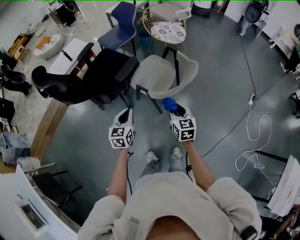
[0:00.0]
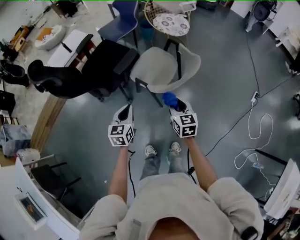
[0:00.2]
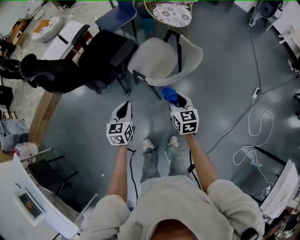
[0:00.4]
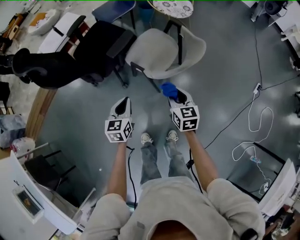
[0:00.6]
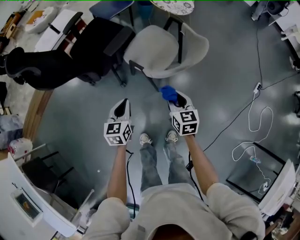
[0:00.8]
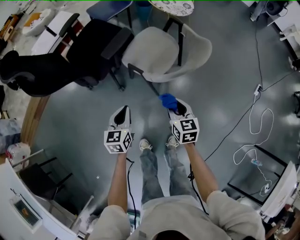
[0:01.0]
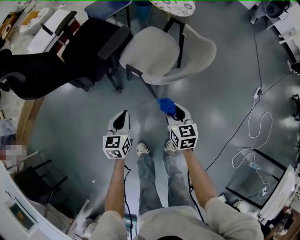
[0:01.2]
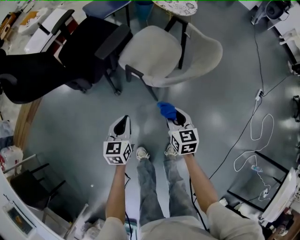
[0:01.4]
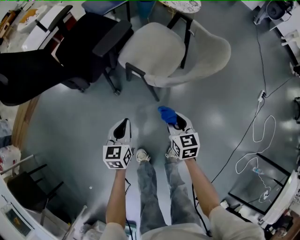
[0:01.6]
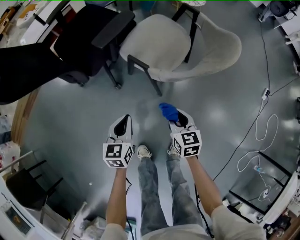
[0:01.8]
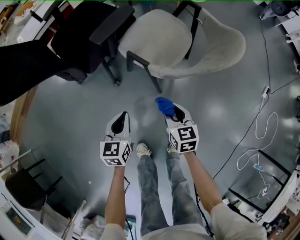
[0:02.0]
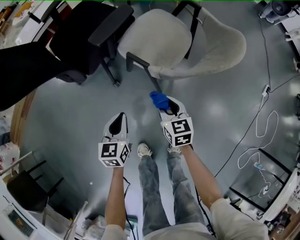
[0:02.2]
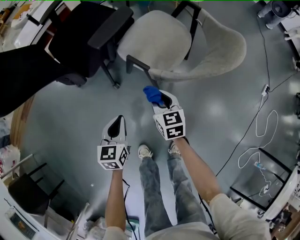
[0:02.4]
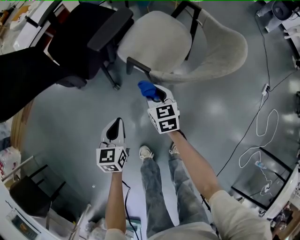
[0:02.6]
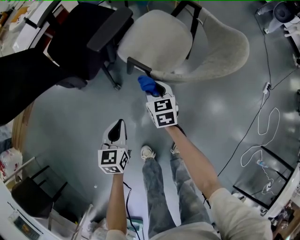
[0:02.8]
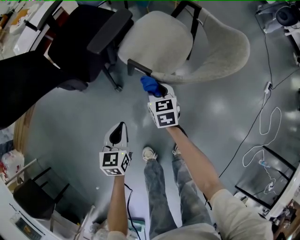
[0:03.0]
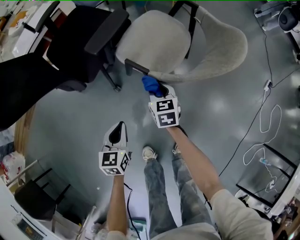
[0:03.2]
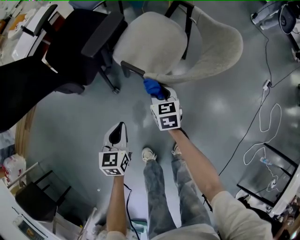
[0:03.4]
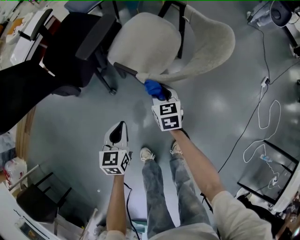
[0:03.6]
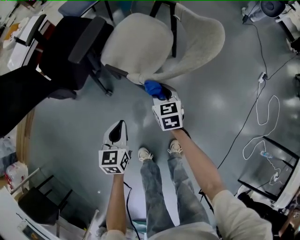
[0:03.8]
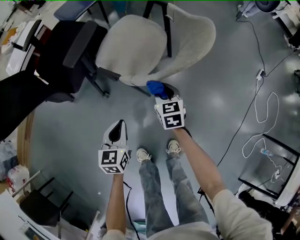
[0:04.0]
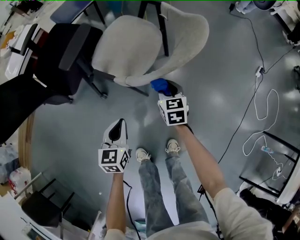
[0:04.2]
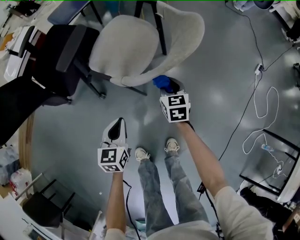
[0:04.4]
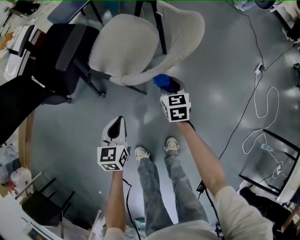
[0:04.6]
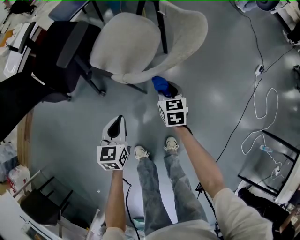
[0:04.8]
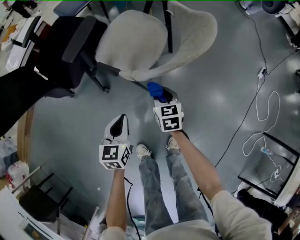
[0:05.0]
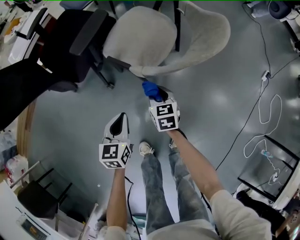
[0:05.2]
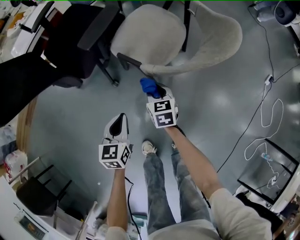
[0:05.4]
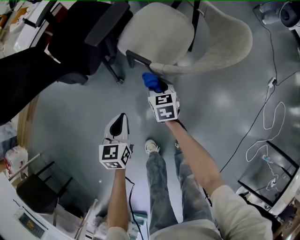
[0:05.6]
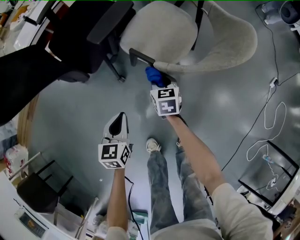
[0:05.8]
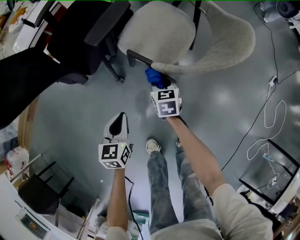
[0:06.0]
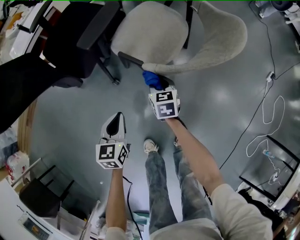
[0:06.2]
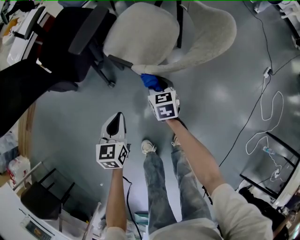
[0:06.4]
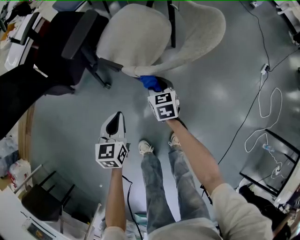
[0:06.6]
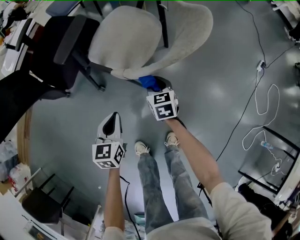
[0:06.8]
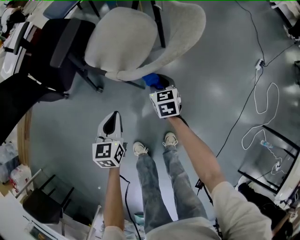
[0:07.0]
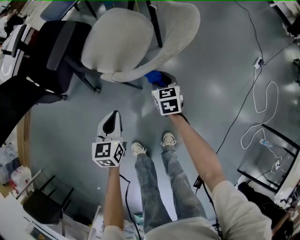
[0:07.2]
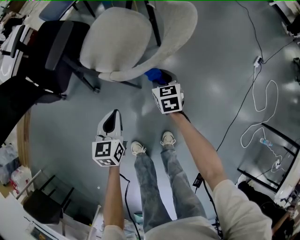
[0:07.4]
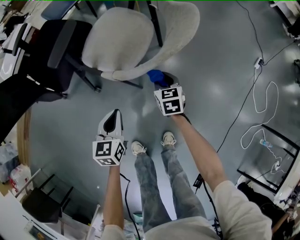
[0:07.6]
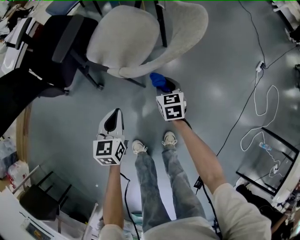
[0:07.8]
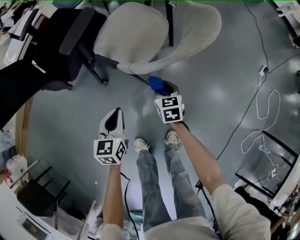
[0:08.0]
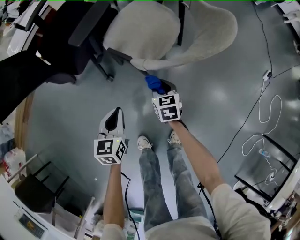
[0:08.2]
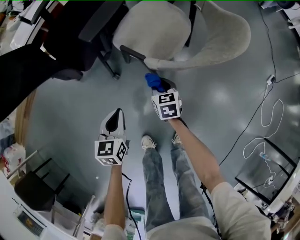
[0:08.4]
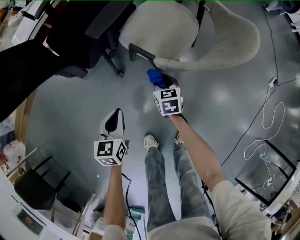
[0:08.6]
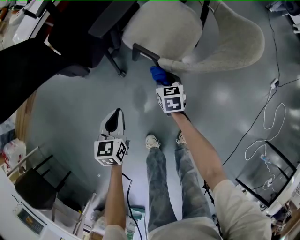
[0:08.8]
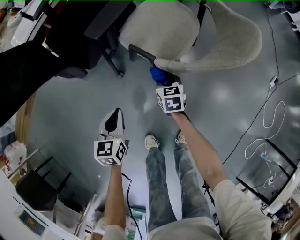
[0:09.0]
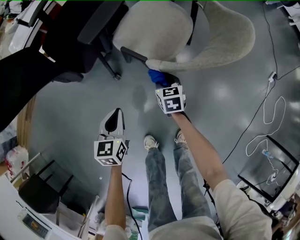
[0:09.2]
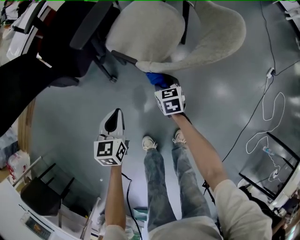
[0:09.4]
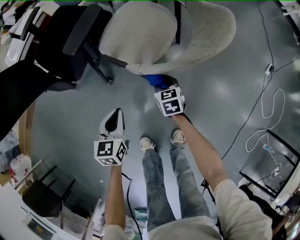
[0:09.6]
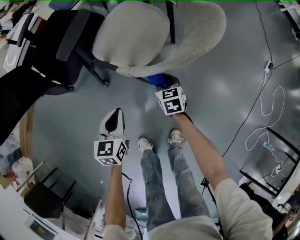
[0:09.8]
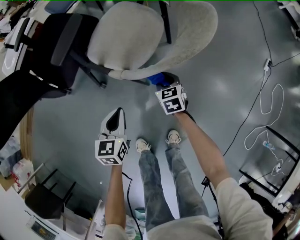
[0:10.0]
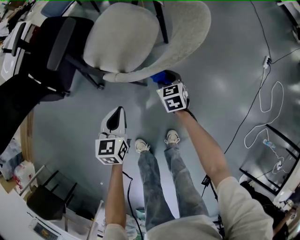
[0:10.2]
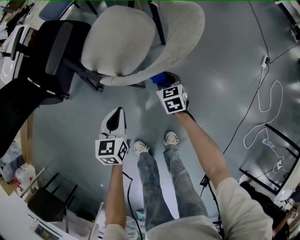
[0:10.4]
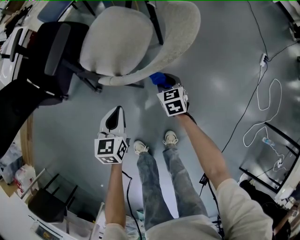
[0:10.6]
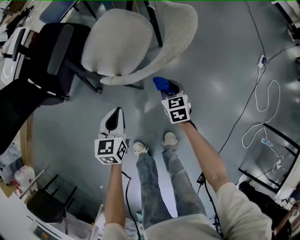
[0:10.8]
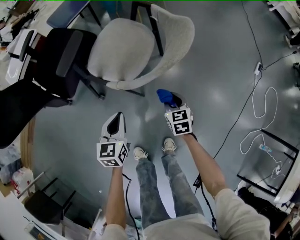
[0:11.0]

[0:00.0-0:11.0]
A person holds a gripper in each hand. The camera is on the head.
0:00.0 to 0:01.6: Both grippers move downward, some 25 cm.
0:01.6 to 0:03.2: The left gripper changes place by some 5 cm, while the right gripper goes about 20 cm forward, to the left and downward.
0:03.2 to 0:04.8: The two grippers go about 15 cm to the right.
0:04.8 to 0:06.2: The grippers both shift to the left by roughly 15 cm.
0:06.2 to 0:07.8: The two grippers go about 15 cm to the right.
0:07.8 to 0:09.4: Both grippers move to the left, approximately 10 cm.
0:09.4 to 0:11.0: The grippers both shift to the right by roughly 15 cm.

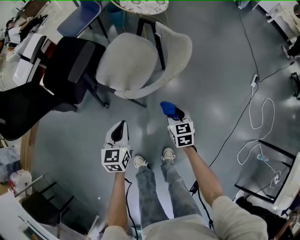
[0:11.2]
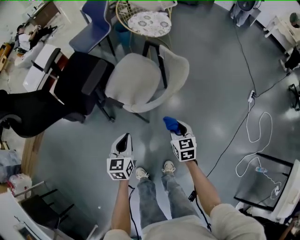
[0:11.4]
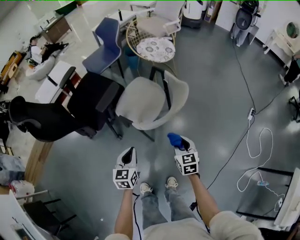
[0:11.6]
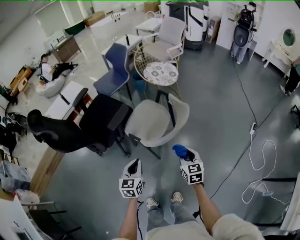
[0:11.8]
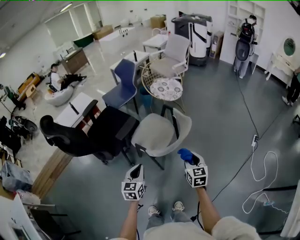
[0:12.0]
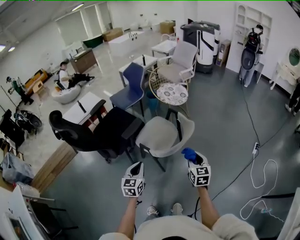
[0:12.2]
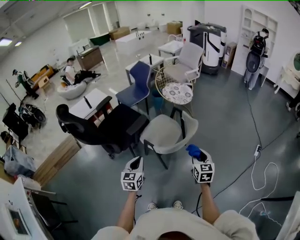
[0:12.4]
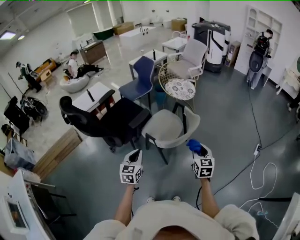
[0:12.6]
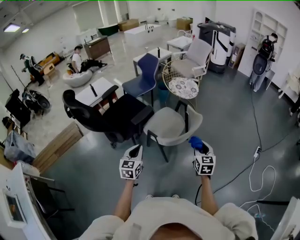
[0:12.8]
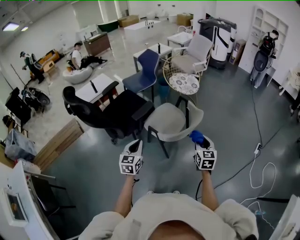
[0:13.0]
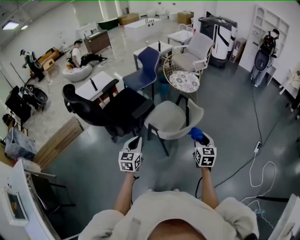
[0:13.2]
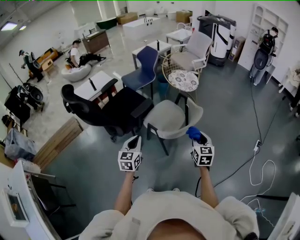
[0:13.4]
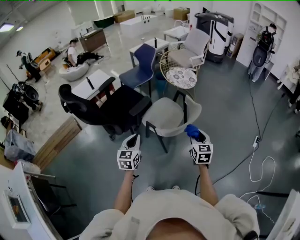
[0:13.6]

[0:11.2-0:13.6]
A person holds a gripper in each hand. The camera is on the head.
0:11.2 to 0:12.4: The grippers both shift upward by approximately 30 cm.
0:12.4 to 0:13.6: There are only small adjustments of the grippers.

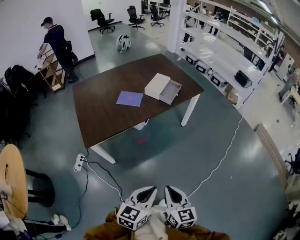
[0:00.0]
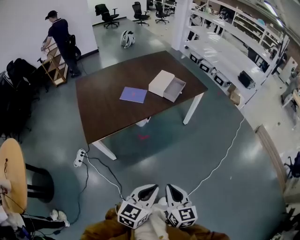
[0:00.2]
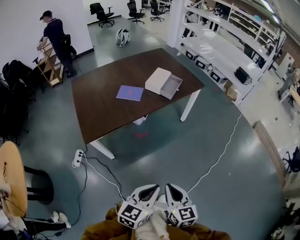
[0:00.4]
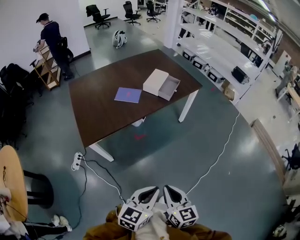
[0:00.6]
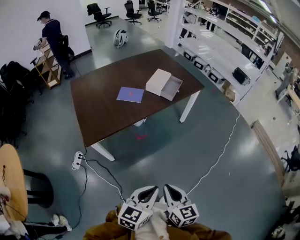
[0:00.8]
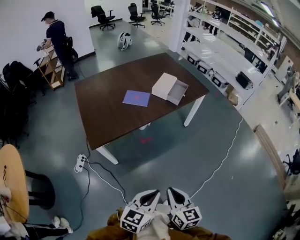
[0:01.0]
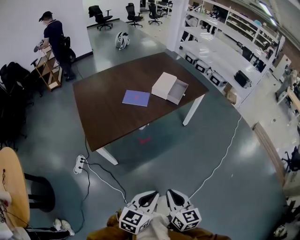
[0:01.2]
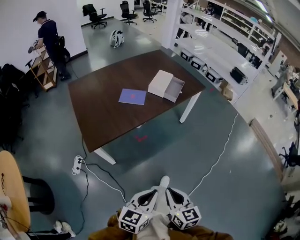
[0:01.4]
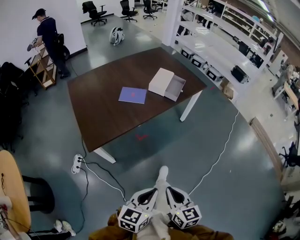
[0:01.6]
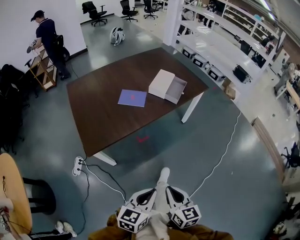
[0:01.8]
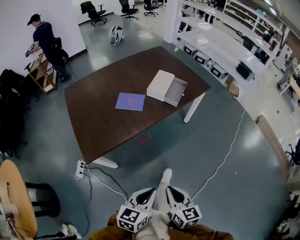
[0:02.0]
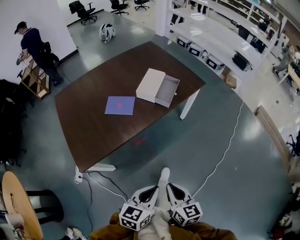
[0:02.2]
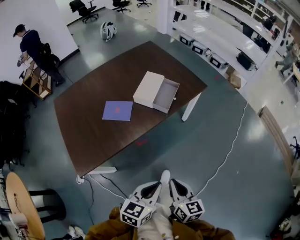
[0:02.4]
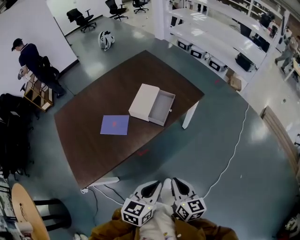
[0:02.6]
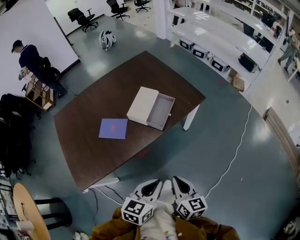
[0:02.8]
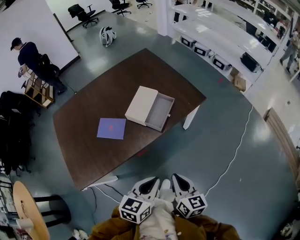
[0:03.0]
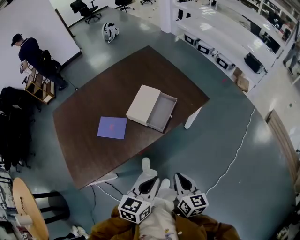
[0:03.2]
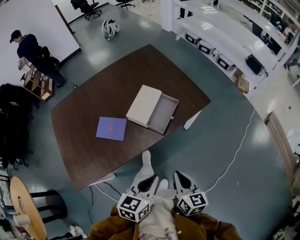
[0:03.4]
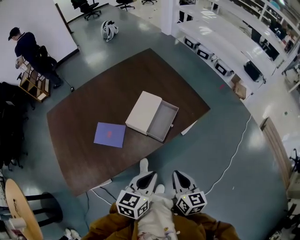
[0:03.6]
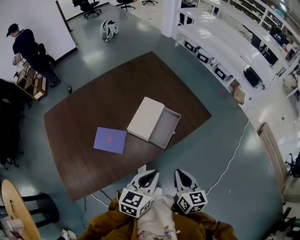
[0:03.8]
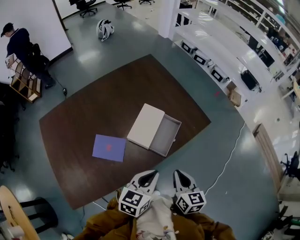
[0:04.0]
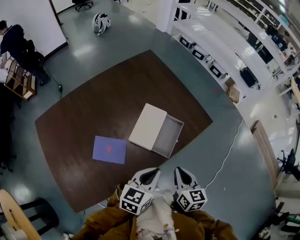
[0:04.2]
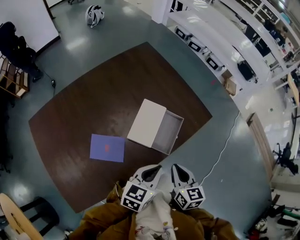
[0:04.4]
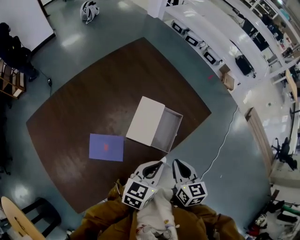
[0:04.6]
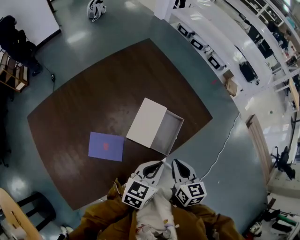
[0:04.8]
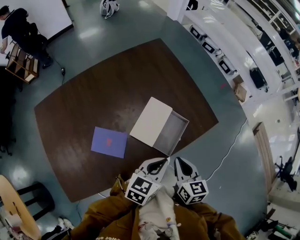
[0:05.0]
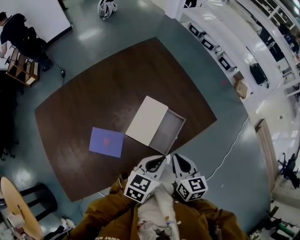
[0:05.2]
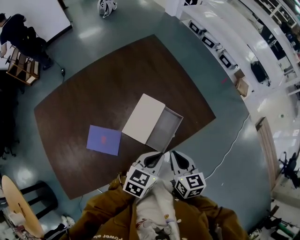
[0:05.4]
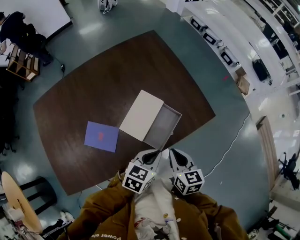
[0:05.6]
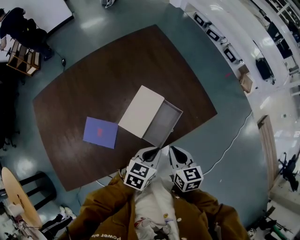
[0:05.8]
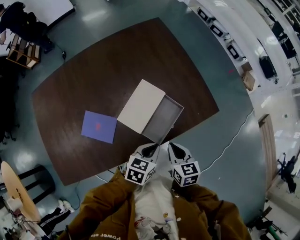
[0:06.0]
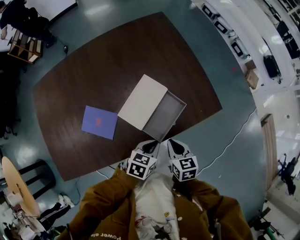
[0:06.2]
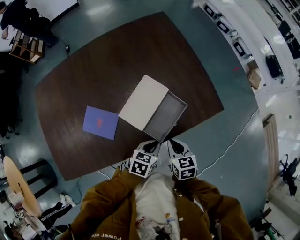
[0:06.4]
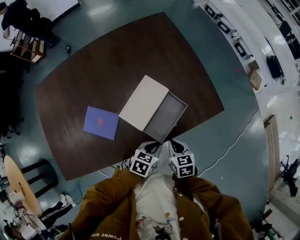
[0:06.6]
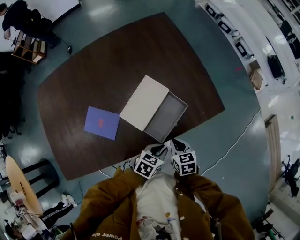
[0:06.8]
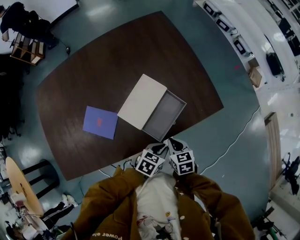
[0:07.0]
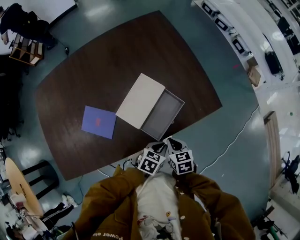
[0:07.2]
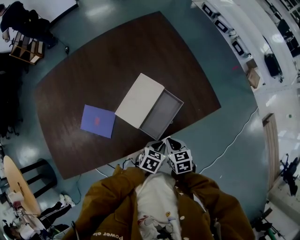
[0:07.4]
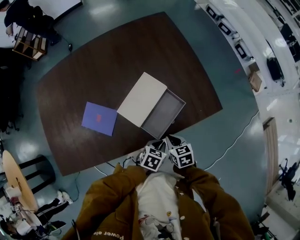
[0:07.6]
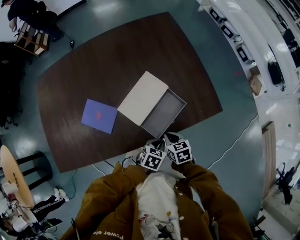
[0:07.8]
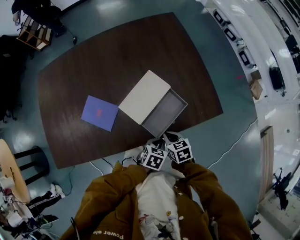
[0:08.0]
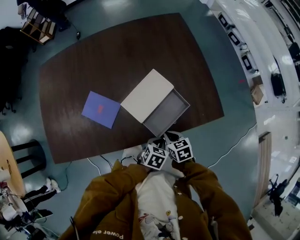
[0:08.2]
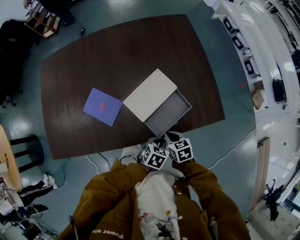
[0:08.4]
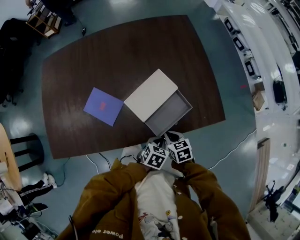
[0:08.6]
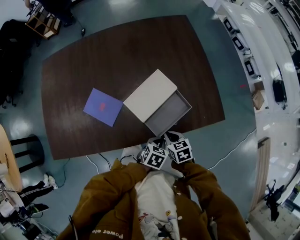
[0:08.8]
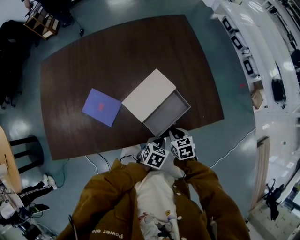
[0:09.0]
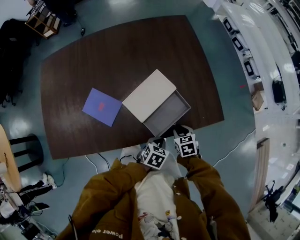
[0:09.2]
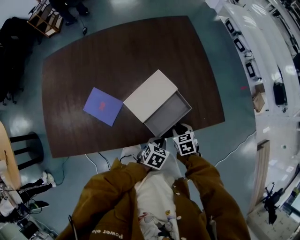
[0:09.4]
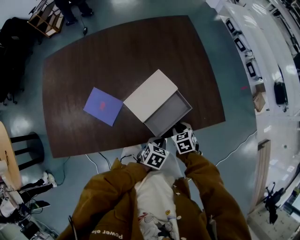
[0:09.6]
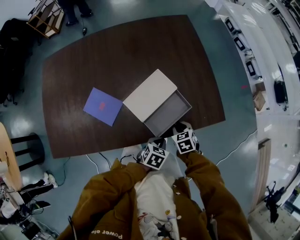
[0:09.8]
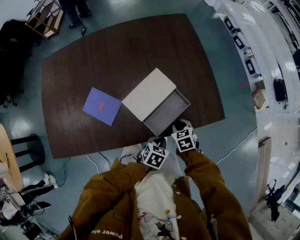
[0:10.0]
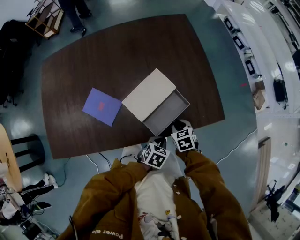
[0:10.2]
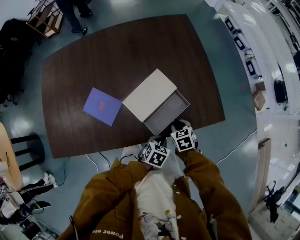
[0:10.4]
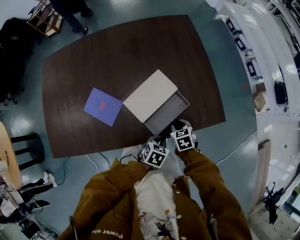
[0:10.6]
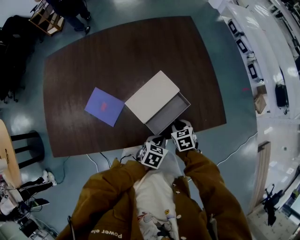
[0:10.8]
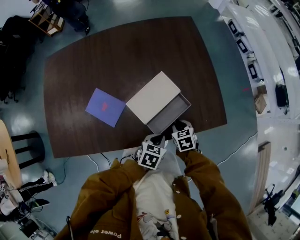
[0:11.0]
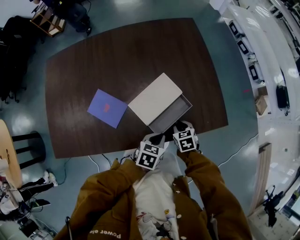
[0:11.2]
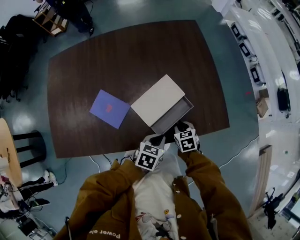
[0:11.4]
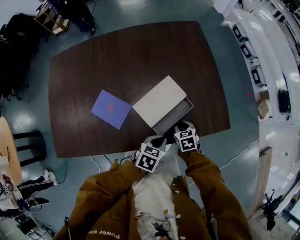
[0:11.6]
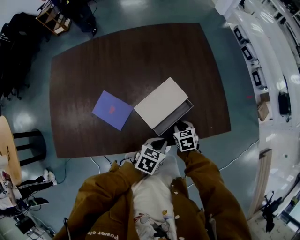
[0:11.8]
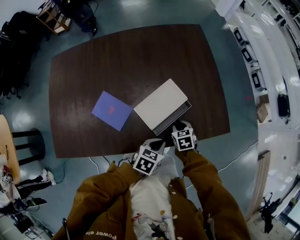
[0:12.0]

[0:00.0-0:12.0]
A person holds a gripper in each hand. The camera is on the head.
0:00.0 to 0:01.6: Both grippers travel together to the left, approximately 10 cm.
0:01.6 to 0:03.0: Both grippers are carried forward, about 50 cm.
0:03.0 to 0:04.4: The grippers both shift forward and to the left by approximately 25 cm.
0:04.4 to 0:06.0: The left gripper heads downward, to the right and forward, covering about 15 cm. Meanwhile the right gripper is displaced downward, forward and to the right by roughly 15 cm, and changes its angle by some 20 degrees.
0:06.0 to 0:07.6: The right gripper moves downward, some 10 cm. The left gripper is displaced downward and to the right by roughly 15 cm.
0:07.6 to 0:09.0: The grippers move only a little.
0:09.0 to 0:10.4: The grippers make only small movements.
0:10.4 to 0:12.0: The right gripper shifts approximately 5 cm to the left. The left gripper shifts about 10 cm upward and to the left.
